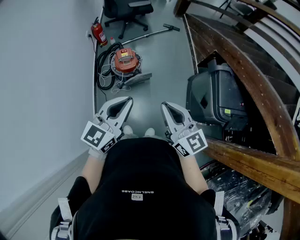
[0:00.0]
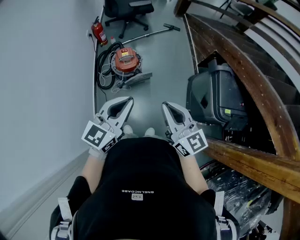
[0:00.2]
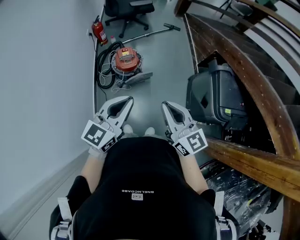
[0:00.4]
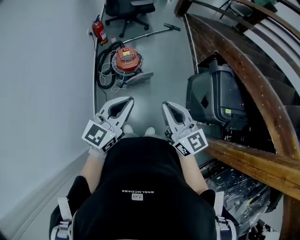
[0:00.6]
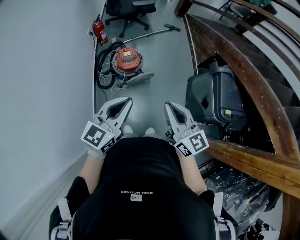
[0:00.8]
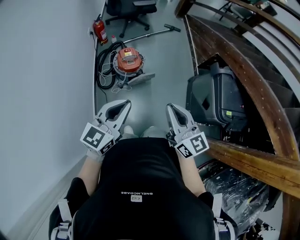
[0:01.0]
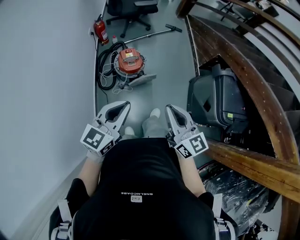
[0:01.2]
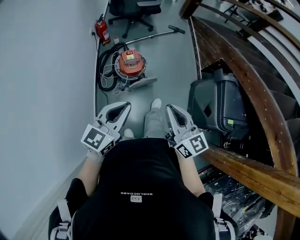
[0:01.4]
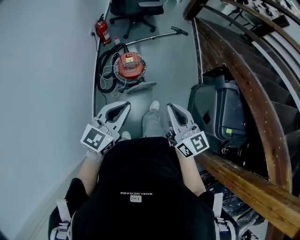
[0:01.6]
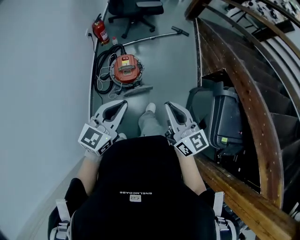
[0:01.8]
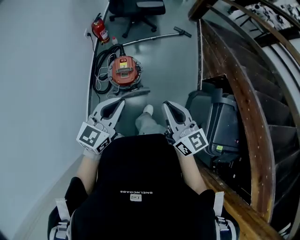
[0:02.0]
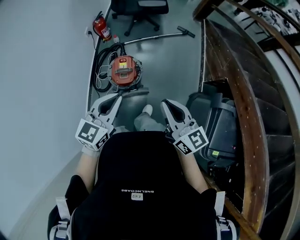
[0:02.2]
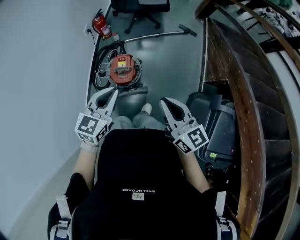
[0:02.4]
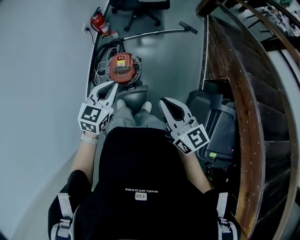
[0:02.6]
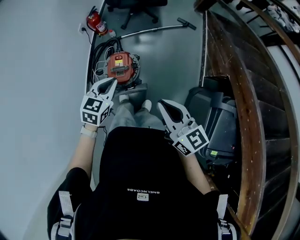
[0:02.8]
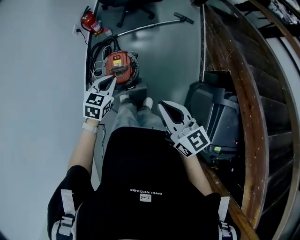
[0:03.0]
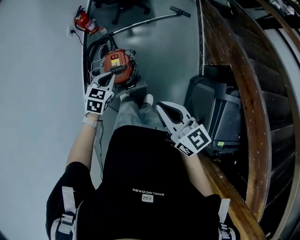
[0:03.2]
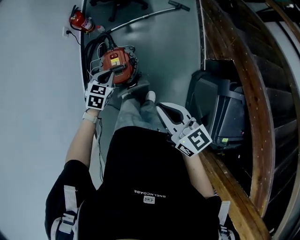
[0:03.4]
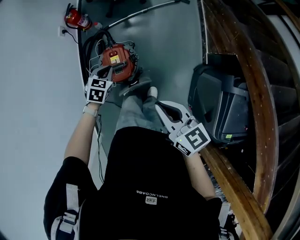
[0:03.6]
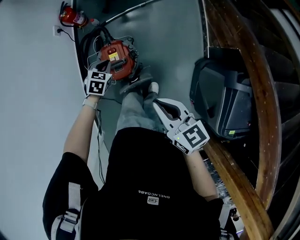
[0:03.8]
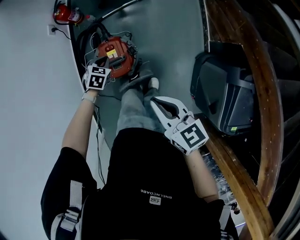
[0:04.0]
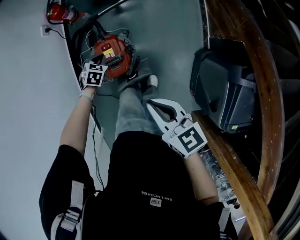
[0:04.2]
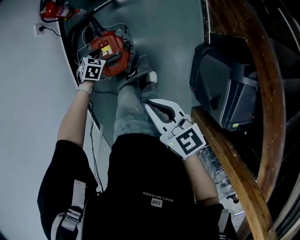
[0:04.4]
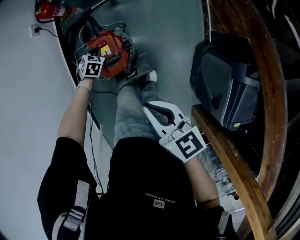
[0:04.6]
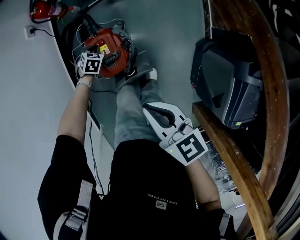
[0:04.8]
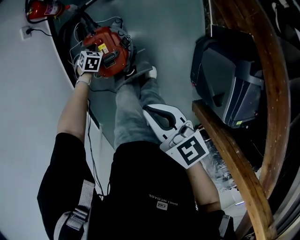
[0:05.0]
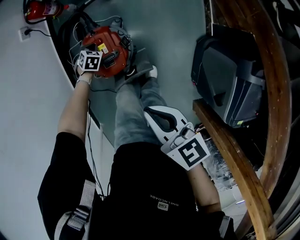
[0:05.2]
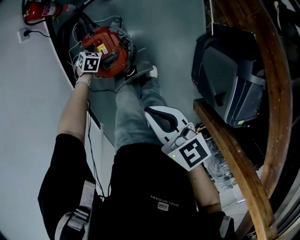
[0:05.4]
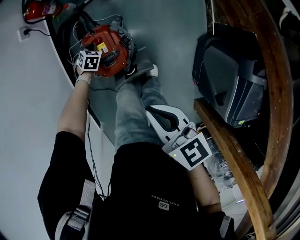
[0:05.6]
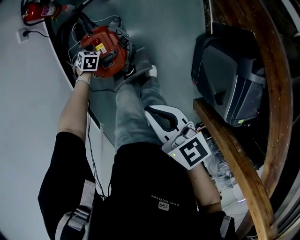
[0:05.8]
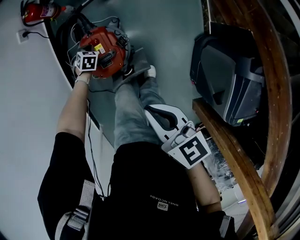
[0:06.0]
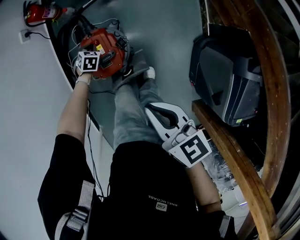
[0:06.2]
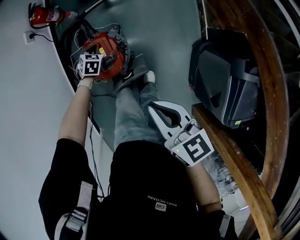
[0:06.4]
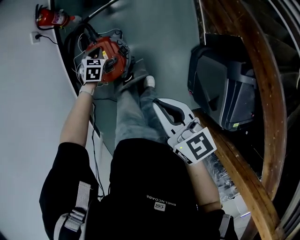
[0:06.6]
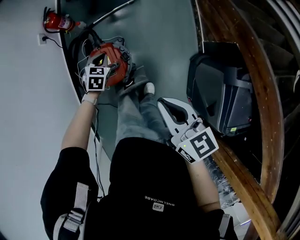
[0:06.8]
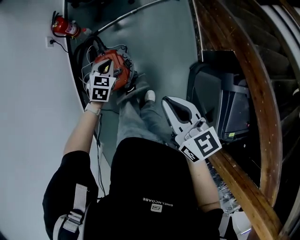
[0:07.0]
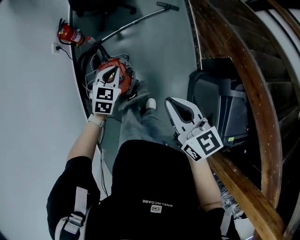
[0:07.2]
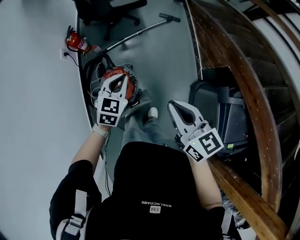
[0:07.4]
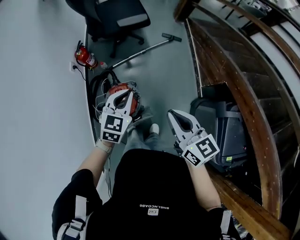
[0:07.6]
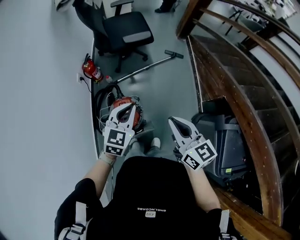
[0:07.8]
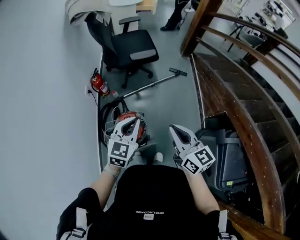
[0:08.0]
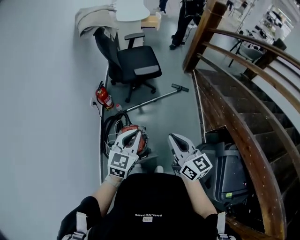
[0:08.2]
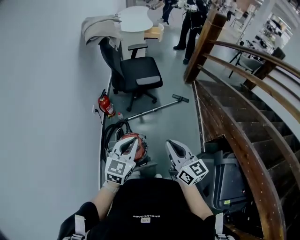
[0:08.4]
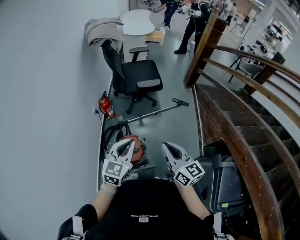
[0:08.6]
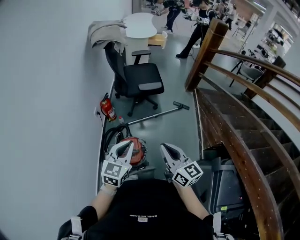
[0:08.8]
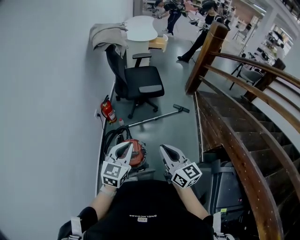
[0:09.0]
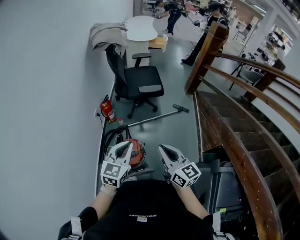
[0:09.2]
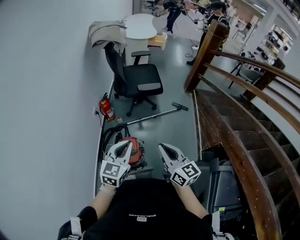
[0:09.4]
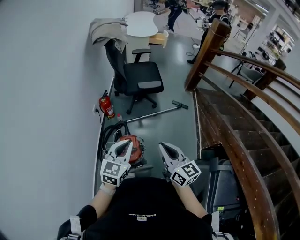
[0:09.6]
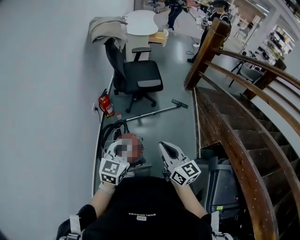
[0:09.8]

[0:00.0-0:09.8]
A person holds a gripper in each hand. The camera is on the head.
0.0 to 1.4 s: The left gripper goes approximately 10 cm to the left, forward and downward; the right gripper shifts about 10 cm forward and to the left.
1.4 to 2.8 s: The left gripper travels forward and downward by roughly 40 cm, and swivels approximately 30 degrees. The right gripper travels forward and to the right by some 35 cm.
2.8 to 4.2 s: The left gripper heads downward and forward, covering about 40 cm, and swivels roughly 30 degrees. The right gripper goes roughly 25 cm downward, forward and to the left, and turns by some 20 degrees.
4.2 to 5.6 s: The right gripper is displaced downward by some 10 cm; the left gripper goes some 20 cm downward.
5.6 to 7.0 s: The right gripper heads upward and to the right, covering roughly 15 cm, while the left gripper heads upward, covering about 30 cm, and changes its angle by approximately 30 degrees.
7.0 to 8.4 s: The right gripper heads upward, covering about 20 cm, and rotates roughly 30 degrees, while the left gripper shifts some 40 cm upward, and turns by about 30 degrees.
8.4 to 9.8 s: The grippers make only small movements.

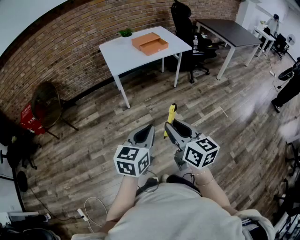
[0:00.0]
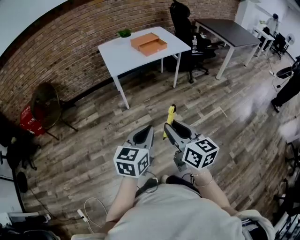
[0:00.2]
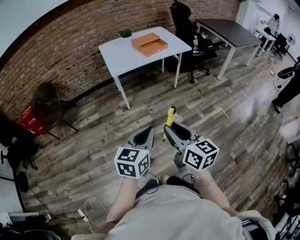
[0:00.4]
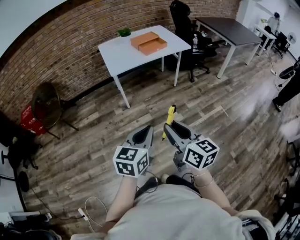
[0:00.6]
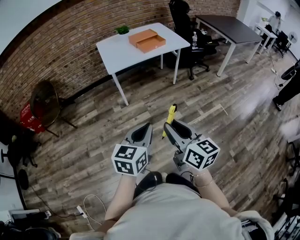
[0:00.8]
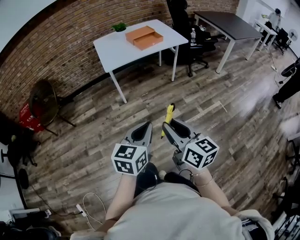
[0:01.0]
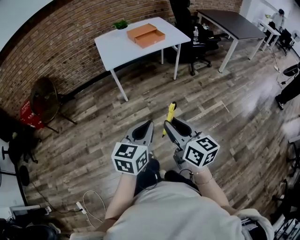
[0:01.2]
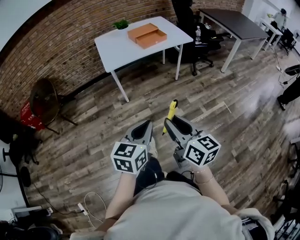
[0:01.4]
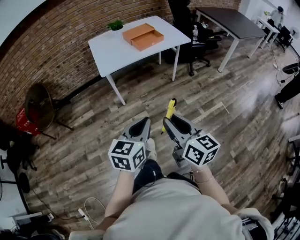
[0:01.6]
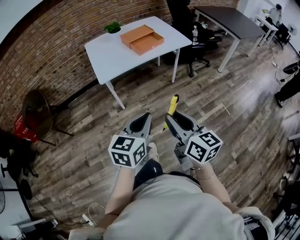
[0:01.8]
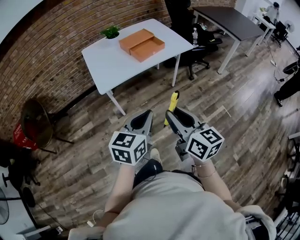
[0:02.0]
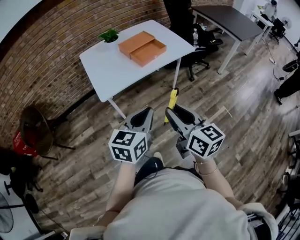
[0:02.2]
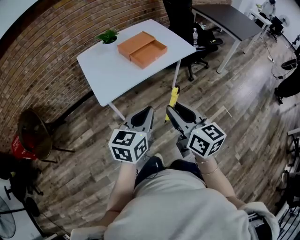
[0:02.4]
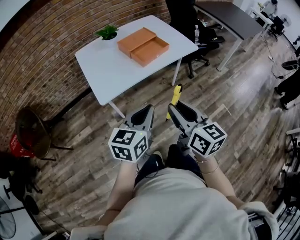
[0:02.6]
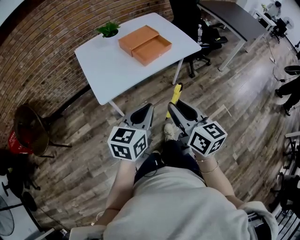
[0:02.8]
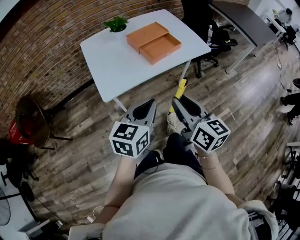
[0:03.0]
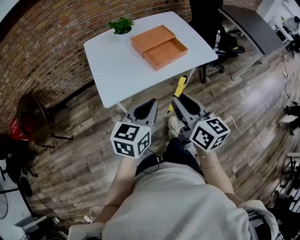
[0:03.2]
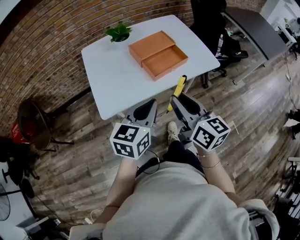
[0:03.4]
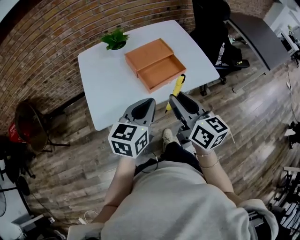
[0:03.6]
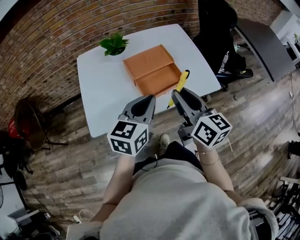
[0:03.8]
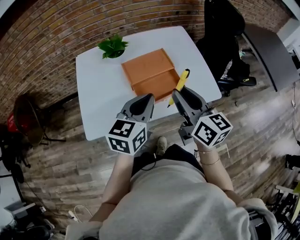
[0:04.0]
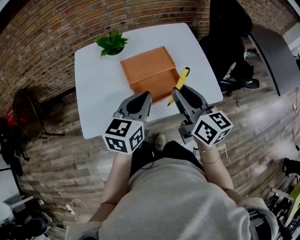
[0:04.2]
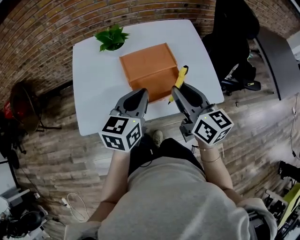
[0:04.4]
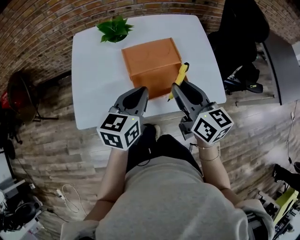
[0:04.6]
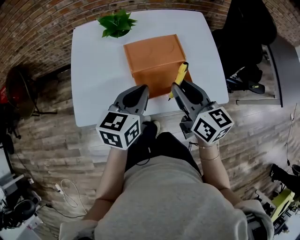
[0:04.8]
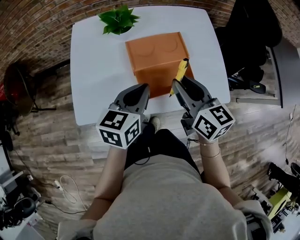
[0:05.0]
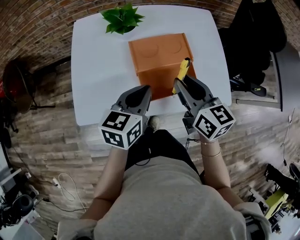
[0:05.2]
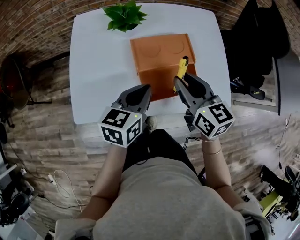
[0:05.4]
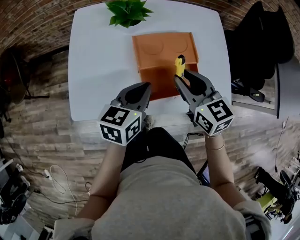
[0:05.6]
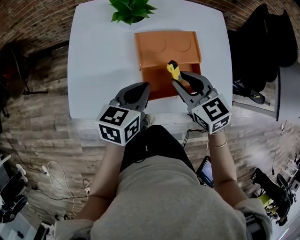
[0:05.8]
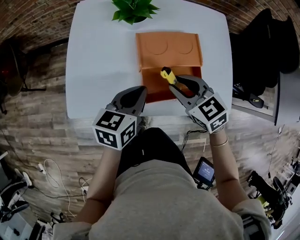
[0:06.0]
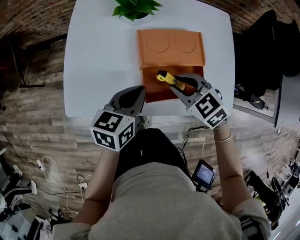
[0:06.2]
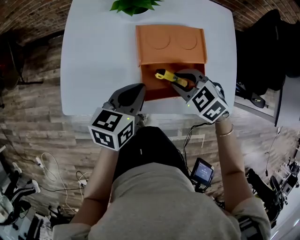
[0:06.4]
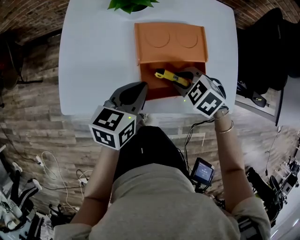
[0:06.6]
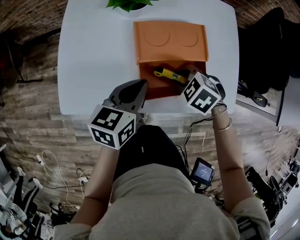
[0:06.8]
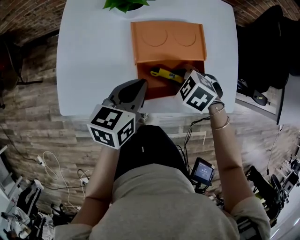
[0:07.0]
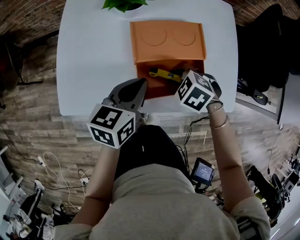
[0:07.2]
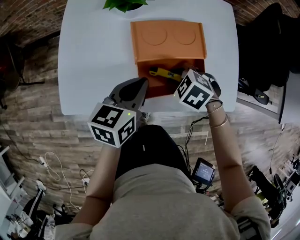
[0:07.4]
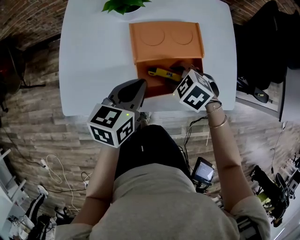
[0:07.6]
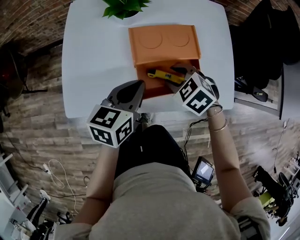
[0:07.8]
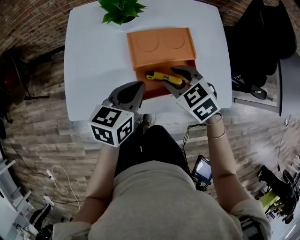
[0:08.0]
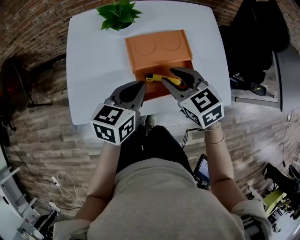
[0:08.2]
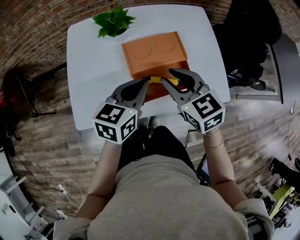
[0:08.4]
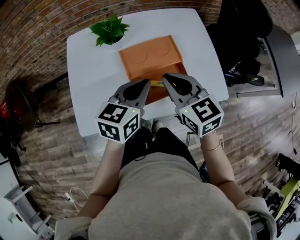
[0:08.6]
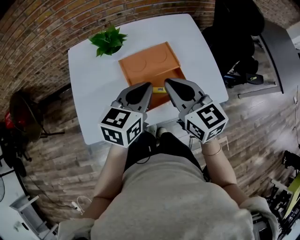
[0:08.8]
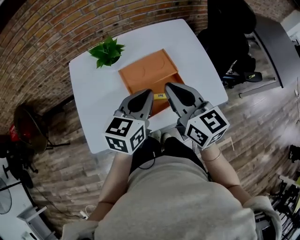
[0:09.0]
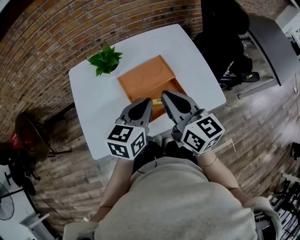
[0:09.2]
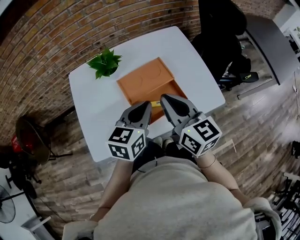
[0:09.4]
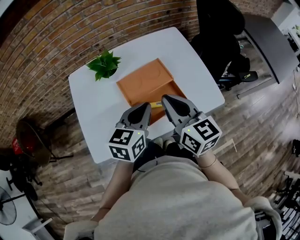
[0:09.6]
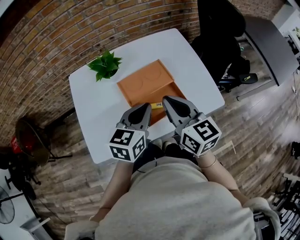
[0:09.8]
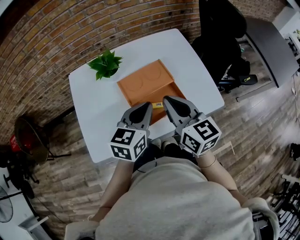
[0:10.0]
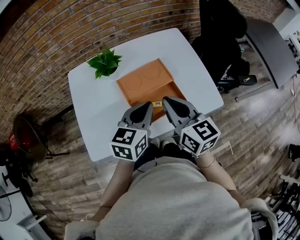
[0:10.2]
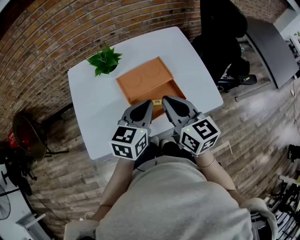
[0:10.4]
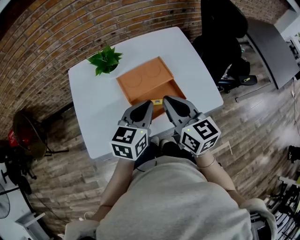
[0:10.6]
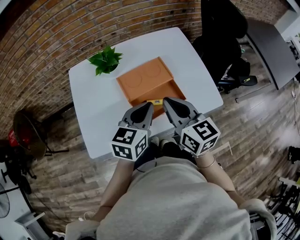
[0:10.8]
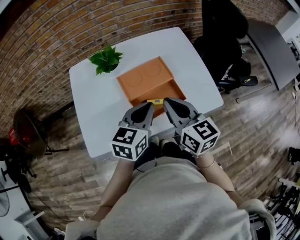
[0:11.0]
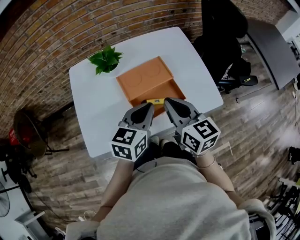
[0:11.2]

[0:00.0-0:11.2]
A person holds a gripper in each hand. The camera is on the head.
0.0 to 1.6 s: The left gripper is displaced forward by about 15 cm, while the right gripper travels forward and to the right by about 15 cm.
1.6 to 3.2 s: The two grippers travel together, forward, about 40 cm.
3.2 to 4.8 s: The grippers both shift forward by roughly 30 cm. The left gripper swivels some 20 degrees, while the right gripper turns by some 20 degrees.
4.8 to 6.4 s: The right gripper is displaced downward by approximately 15 cm, and angles its fingers downward, by approximately 40 degrees. Meanwhile the left gripper shifts approximately 10 cm downward.
6.4 to 8.0 s: The grippers make only small movements.
8.0 to 9.6 s: The right gripper is displaced upward by approximately 15 cm, tips its fingers upward by about 40 degrees, and closes, while the left gripper travels upward and to the right by roughly 10 cm.
9.6 to 11.2 s: The grippers stay close to where they were, moving slightly.

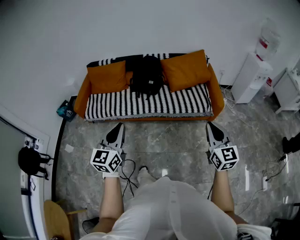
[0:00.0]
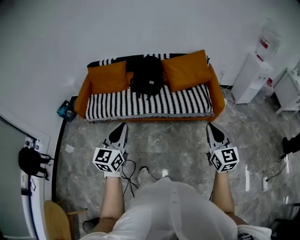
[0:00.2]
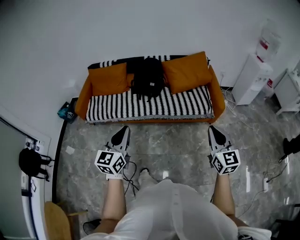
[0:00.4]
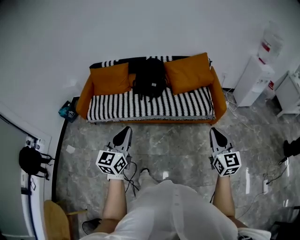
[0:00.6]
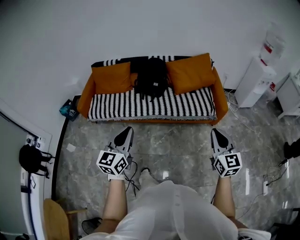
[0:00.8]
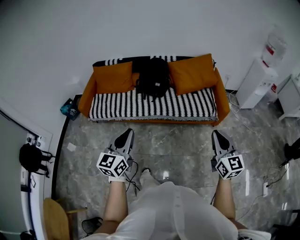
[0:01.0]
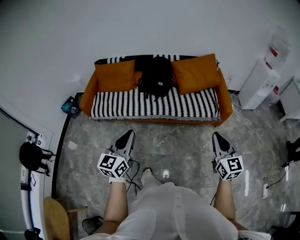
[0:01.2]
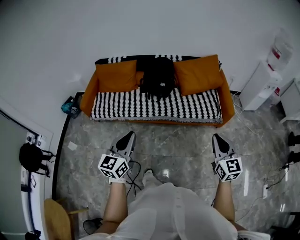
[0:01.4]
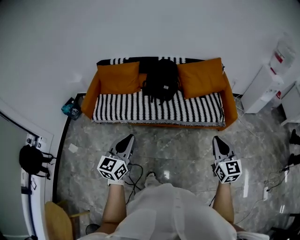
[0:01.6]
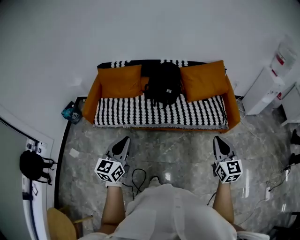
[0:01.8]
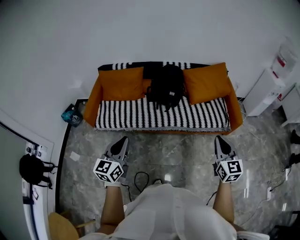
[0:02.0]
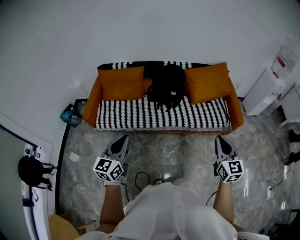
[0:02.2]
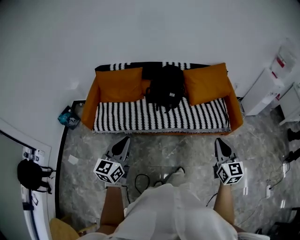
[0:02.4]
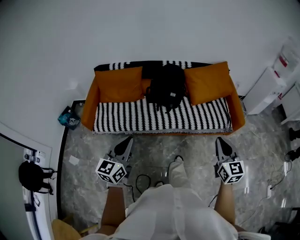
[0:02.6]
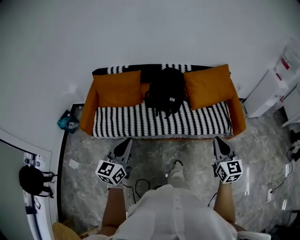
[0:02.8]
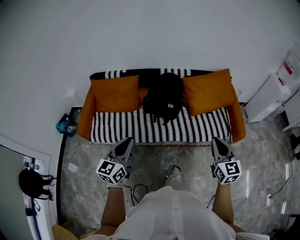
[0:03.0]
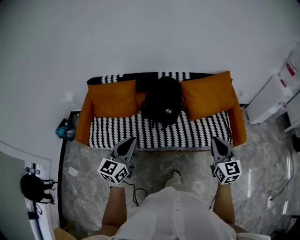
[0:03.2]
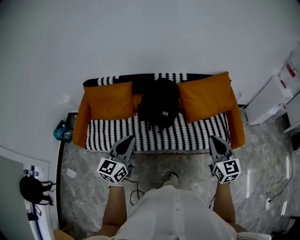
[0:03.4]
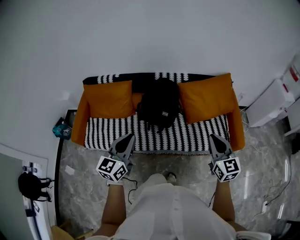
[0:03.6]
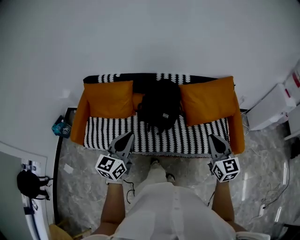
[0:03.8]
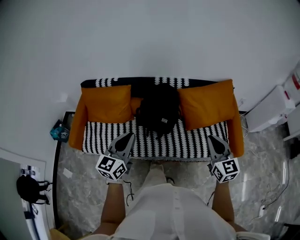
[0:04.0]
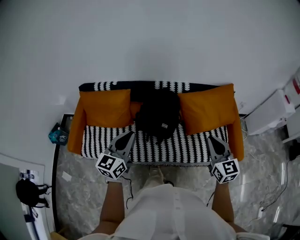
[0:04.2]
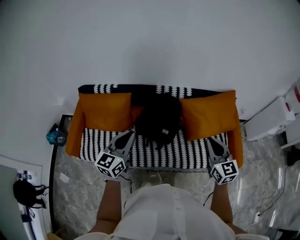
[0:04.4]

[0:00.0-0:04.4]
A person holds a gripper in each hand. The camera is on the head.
0.0 to 1.4 s: The right gripper shifts about 5 cm to the left. The left gripper ends up roughly 5 cm from where it was.
1.4 to 3.0 s: Both grippers move forward and to the left, roughly 25 cm.
3.0 to 4.4 s: Both grippers move forward, roughly 25 cm.
